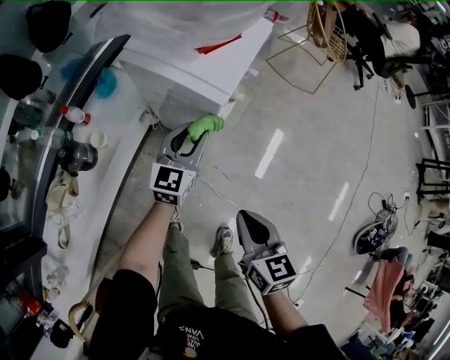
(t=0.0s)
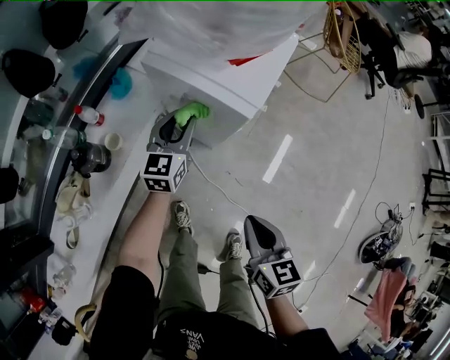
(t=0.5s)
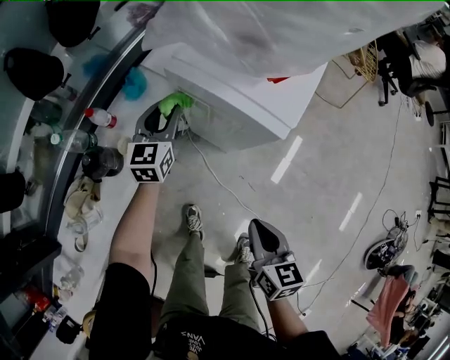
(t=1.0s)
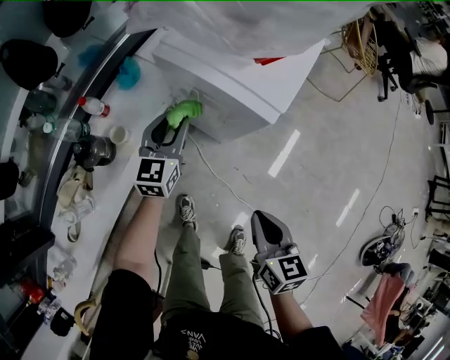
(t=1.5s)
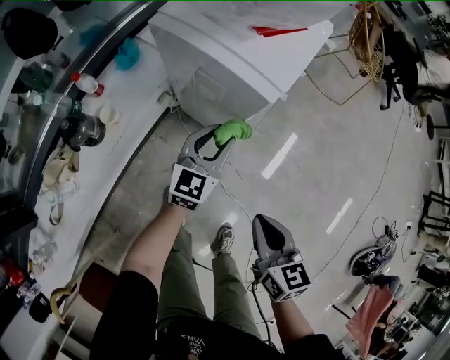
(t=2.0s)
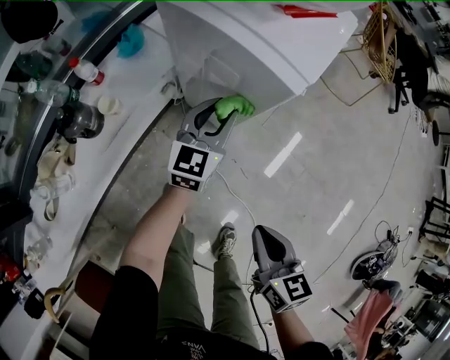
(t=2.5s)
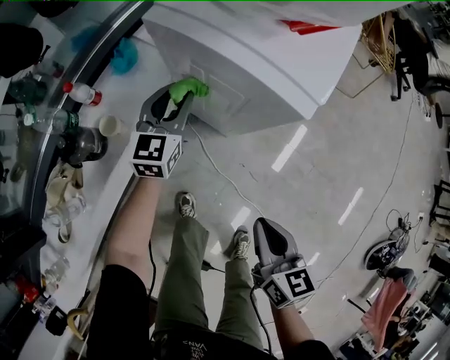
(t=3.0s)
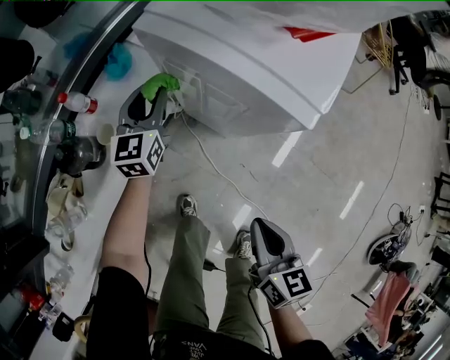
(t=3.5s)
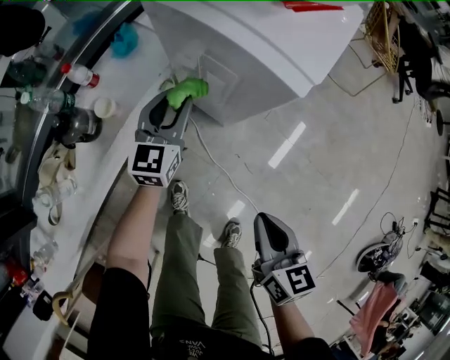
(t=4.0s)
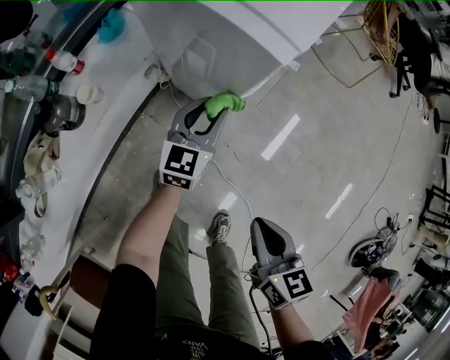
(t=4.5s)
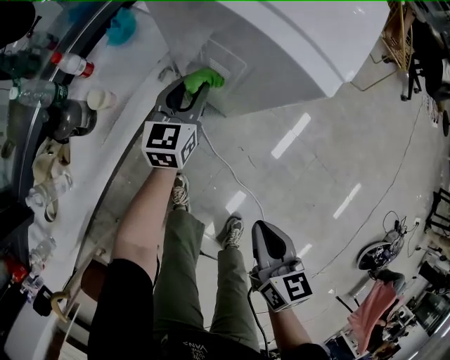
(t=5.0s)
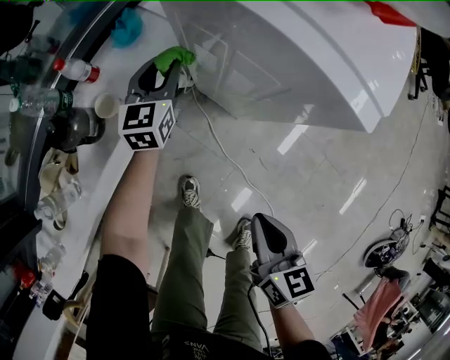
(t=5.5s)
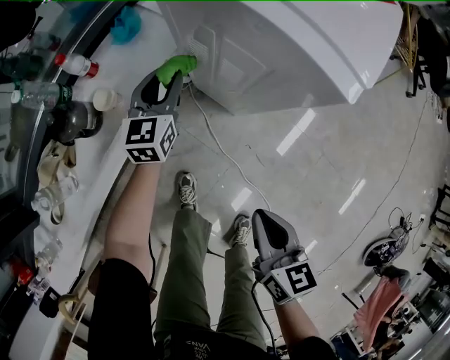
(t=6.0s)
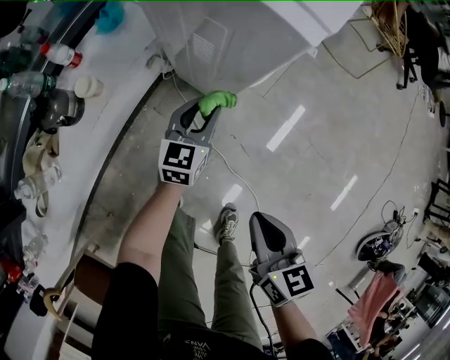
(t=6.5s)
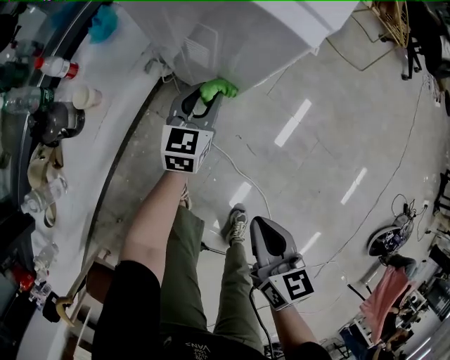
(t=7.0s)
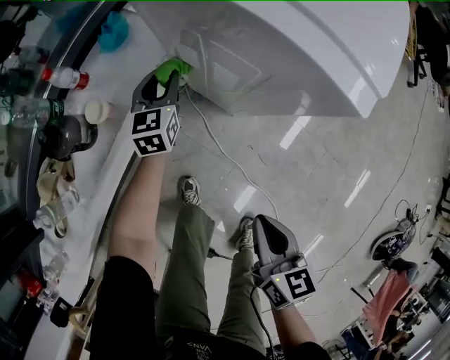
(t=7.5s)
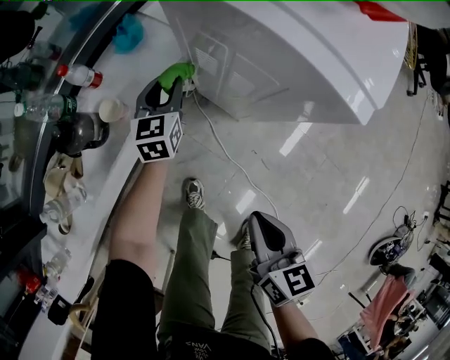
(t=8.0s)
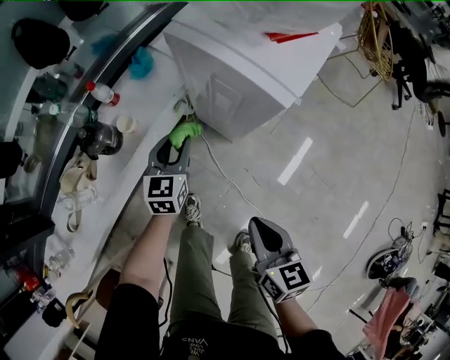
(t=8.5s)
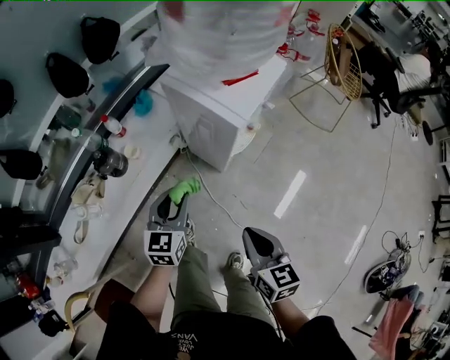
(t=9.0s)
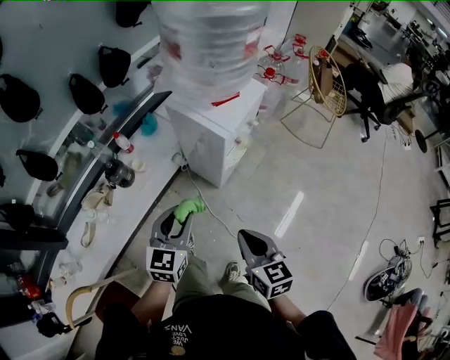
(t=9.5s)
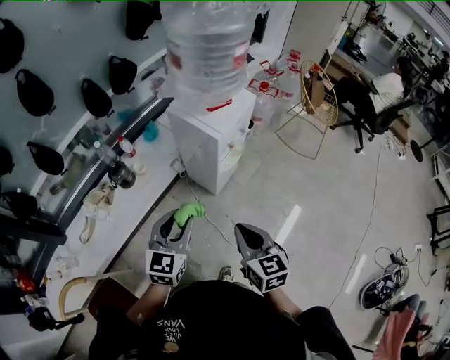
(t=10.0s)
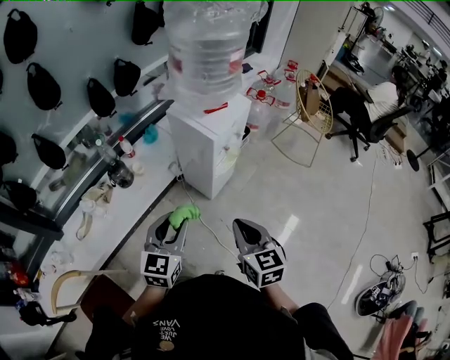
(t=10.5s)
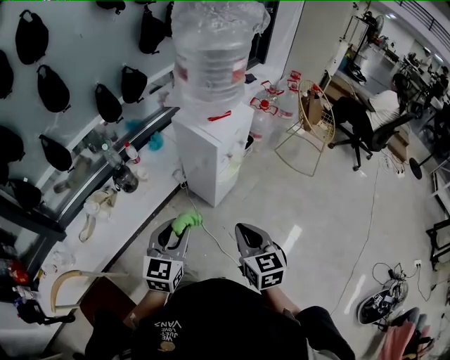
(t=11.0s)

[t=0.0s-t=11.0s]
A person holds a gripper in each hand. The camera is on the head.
t=0.0s to t=2.0s: The two grippers go about 5 cm downward. The left gripper goes to the left and returns, some 20 cm each way.
t=2.0s to t=3.5s: The right gripper goes some 5 cm to the left, while the left gripper goes roughly 25 cm to the left and forward, and turns by roughly 20 degrees.
t=3.5s to t=5.5s: The right gripper reaches approximately 5 cm to the right, then returns. The left gripper moves downward, about 5 cm, and moves some 20 cm to the right and comes back.
t=5.5s to t=7.5s: The left gripper shifts some 5 cm downward, and moves approximately 20 cm backward and comes back.
t=7.5s to t=9.0s: The right gripper shifts about 20 cm upward, while the left gripper moves backward and upward, about 35 cm.
t=9.0s to t=11.0s: The left gripper is displaced backward and upward by about 25 cm, while the right gripper shifts approximately 15 cm upward and backward.

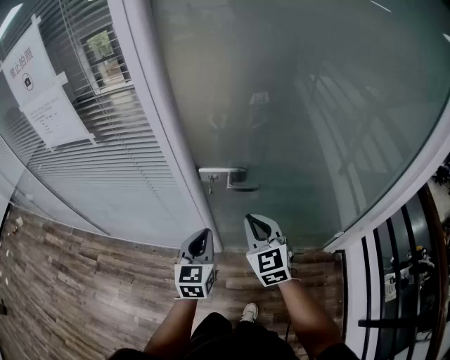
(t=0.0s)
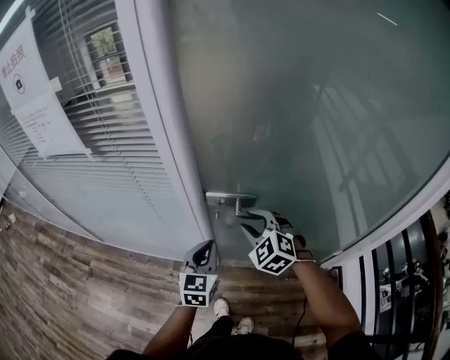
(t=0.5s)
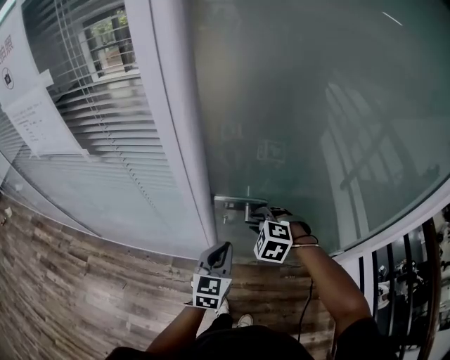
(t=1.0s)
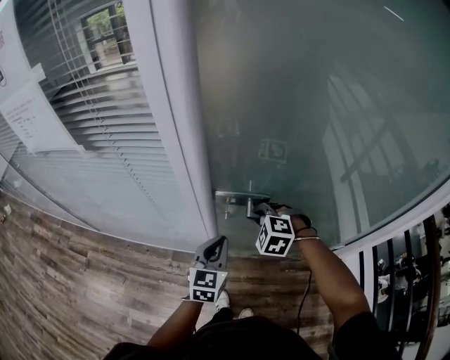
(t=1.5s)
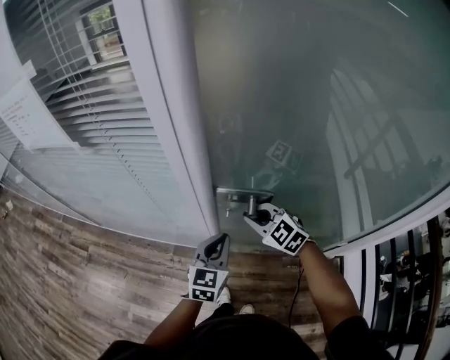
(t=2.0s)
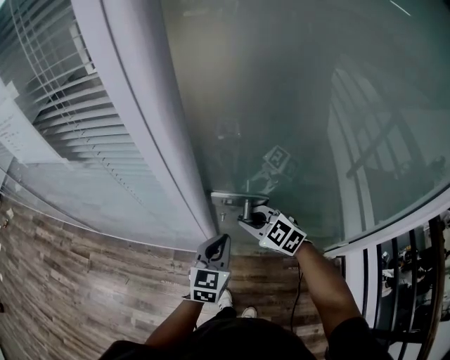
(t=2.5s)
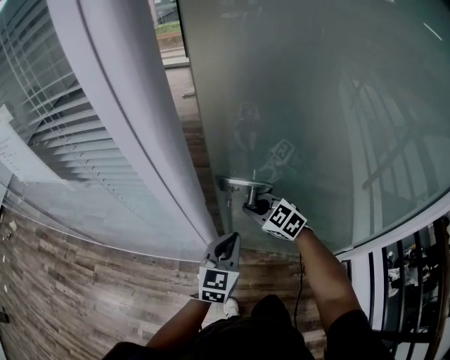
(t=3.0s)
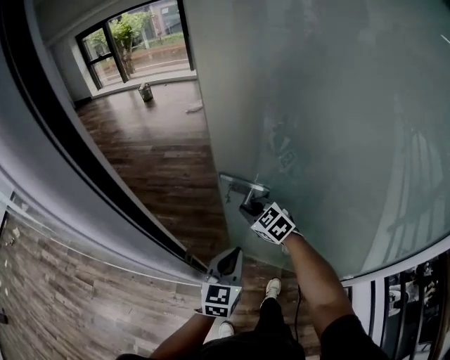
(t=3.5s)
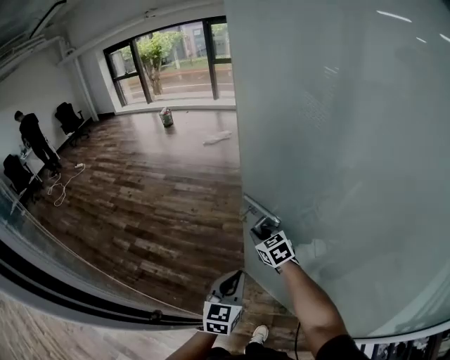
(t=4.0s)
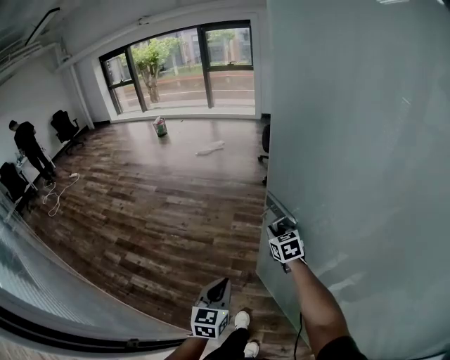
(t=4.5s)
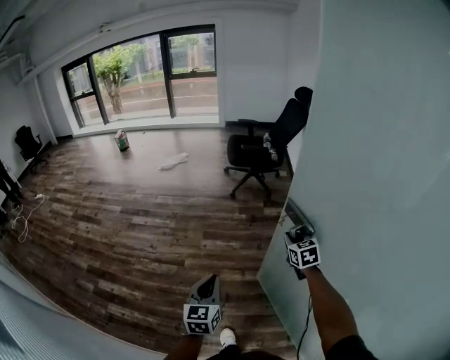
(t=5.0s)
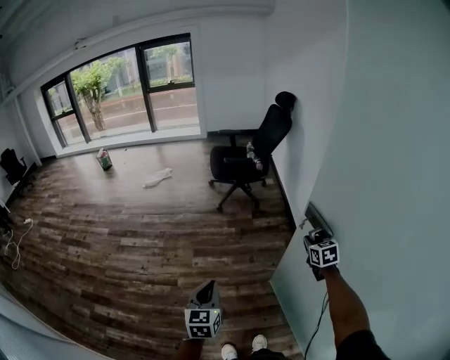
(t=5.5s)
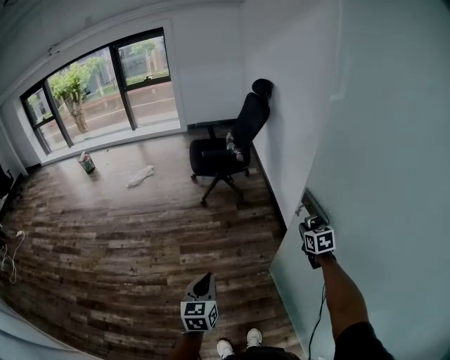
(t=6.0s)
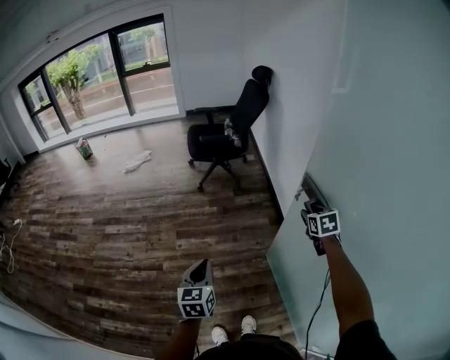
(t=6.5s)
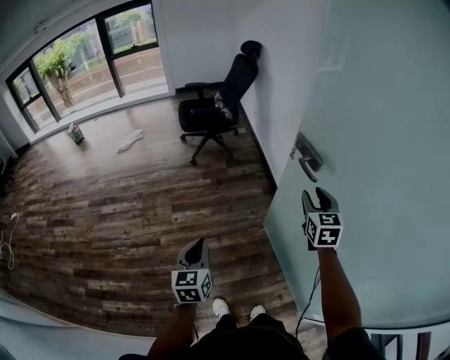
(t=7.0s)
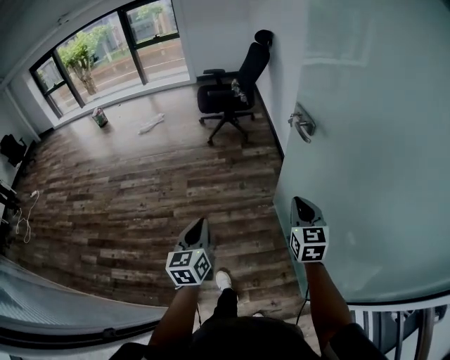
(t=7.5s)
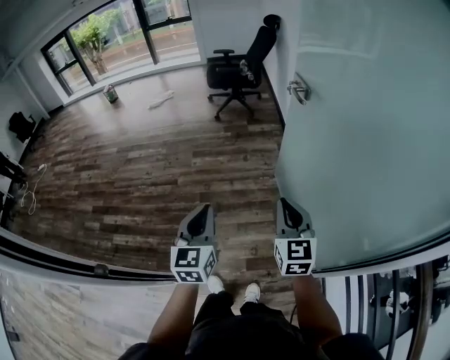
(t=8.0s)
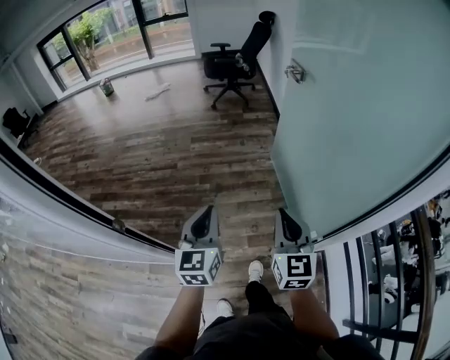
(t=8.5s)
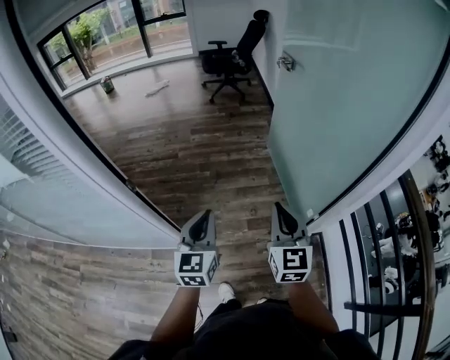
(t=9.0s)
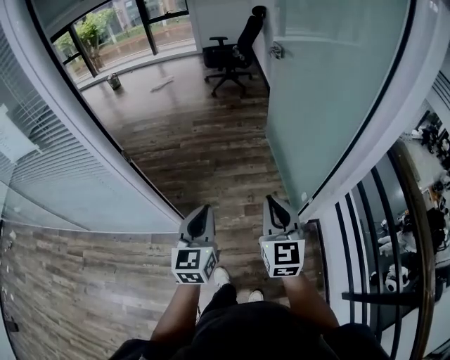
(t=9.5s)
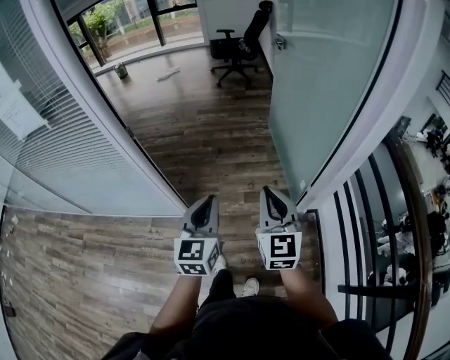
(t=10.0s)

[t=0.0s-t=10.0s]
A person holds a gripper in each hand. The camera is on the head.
t=0.0s to t=2.0s: The right gripper goes about 20 cm forward and downward, changes its angle by approximately 40 degrees, and opens, then closes once more. The left gripper is displaced forward and downward by some 10 cm.
t=2.0s to t=4.0s: Both grippers travel together forward and to the right, approximately 40 cm. The right gripper changes its angle by some 20 degrees.
t=4.0s to t=6.0s: The two grippers travel together, approximately 60 cm. The right gripper rotates about 40 degrees.
t=6.0s to t=8.0s: The two grippers travel together, backward, approximately 60 cm. The right gripper turns by some 30 degrees, and opens and closes again.
t=8.0s to t=10.0s: Both grippers are carried backward, some 60 cm.

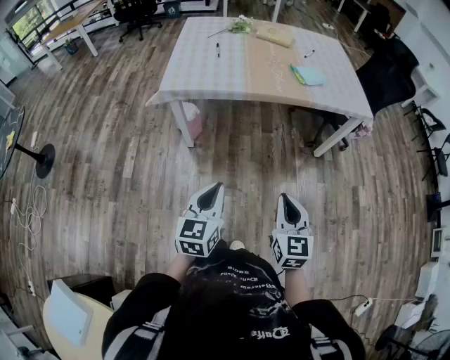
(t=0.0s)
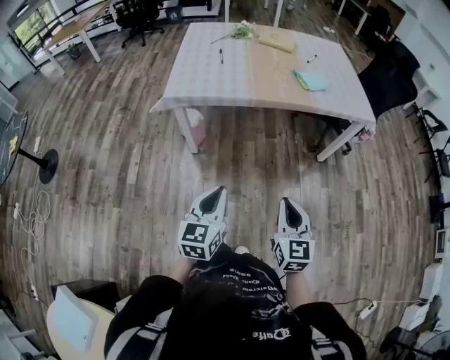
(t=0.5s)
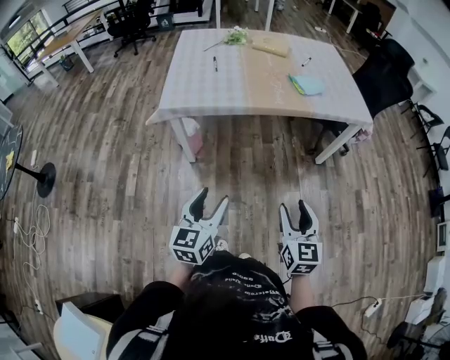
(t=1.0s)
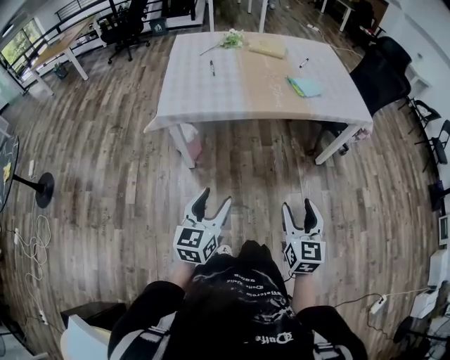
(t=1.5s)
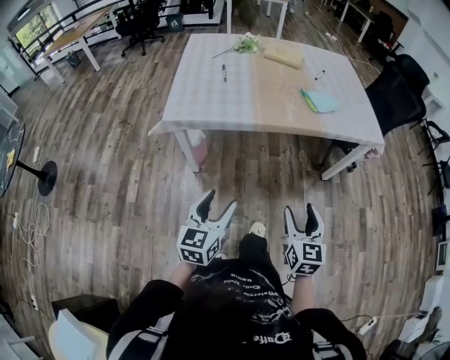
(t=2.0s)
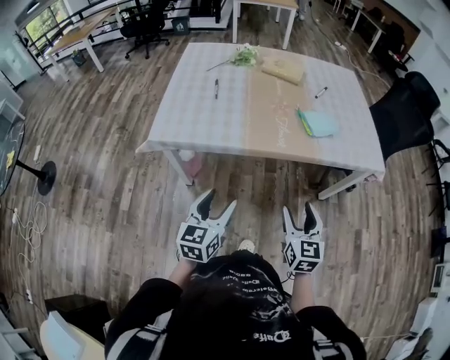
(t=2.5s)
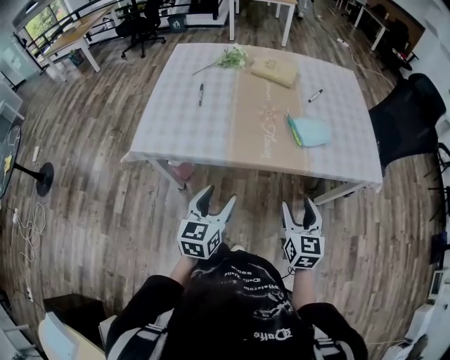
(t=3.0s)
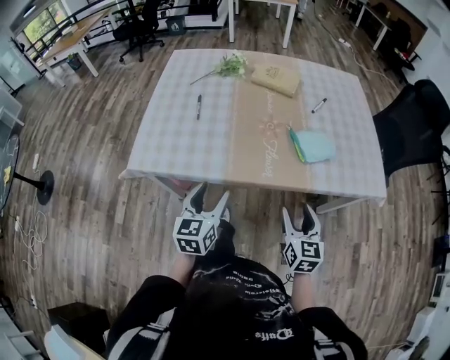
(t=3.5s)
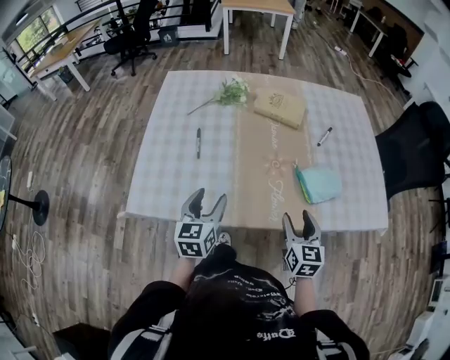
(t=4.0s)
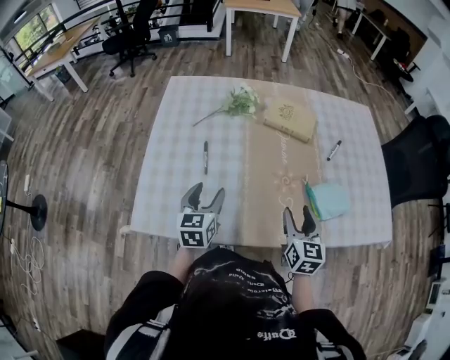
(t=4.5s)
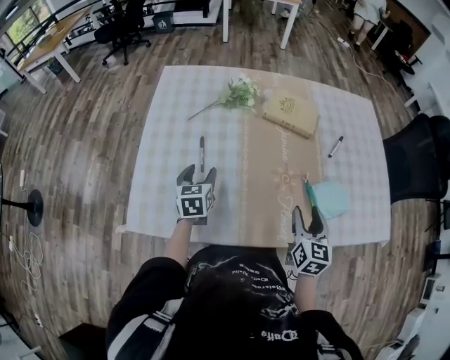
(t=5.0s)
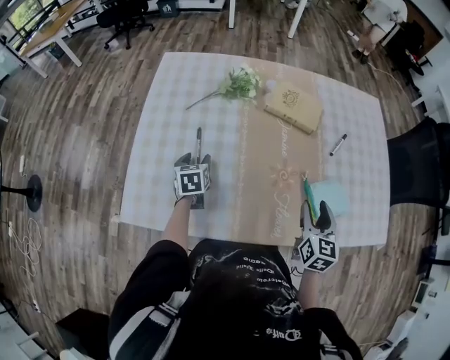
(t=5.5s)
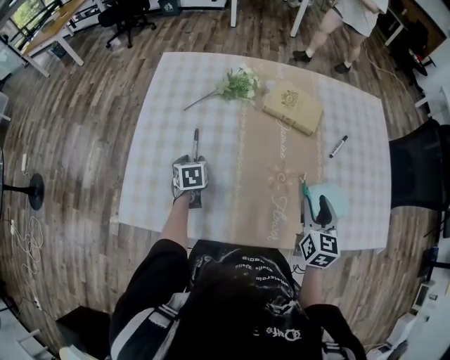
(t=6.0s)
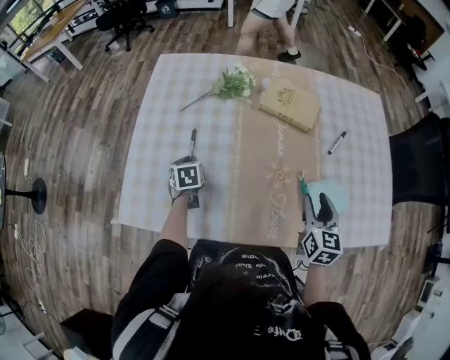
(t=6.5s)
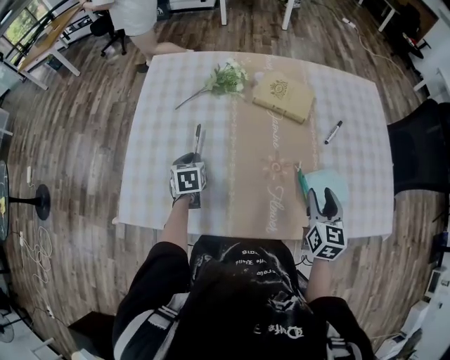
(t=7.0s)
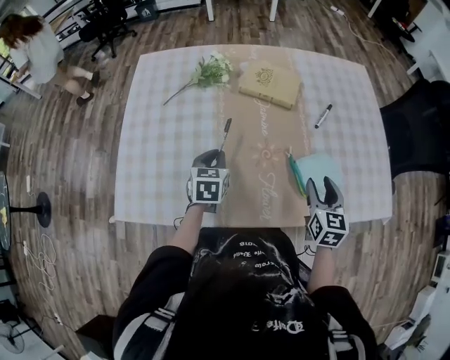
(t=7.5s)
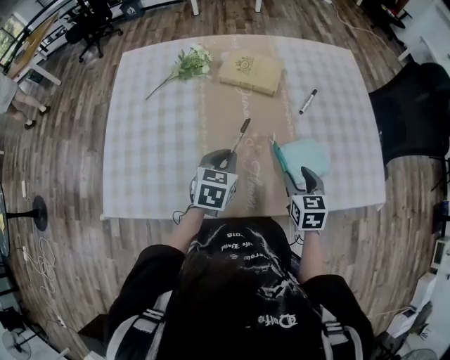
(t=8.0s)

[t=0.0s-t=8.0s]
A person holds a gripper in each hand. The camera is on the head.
t=0.0s to t=2.0s: The grippers both shift forward by roughly 15 cm. The right gripper opens; the left gripper opens its fingers.
t=2.0s to t=4.0s: The two grippers travel together, forward, some 50 cm.
t=4.0s to t=6.0s: The left gripper moves forward, downward and to the left, about 30 cm, and tilts its fingers approximately 30 degrees downward; the right gripper moves forward, about 20 cm.
t=6.0s to t=8.0s: The left gripper goes about 30 cm to the right, turns by about 30 degrees, and closes up; the right gripper travels to the right and downward by approximately 10 cm.
